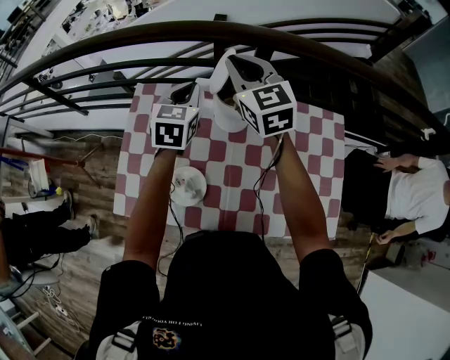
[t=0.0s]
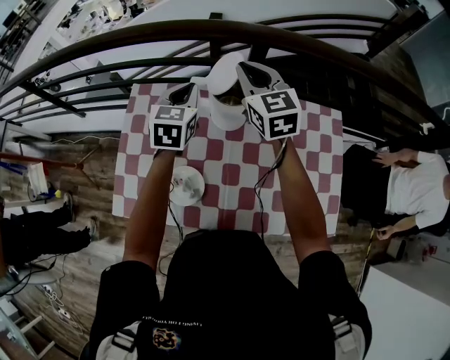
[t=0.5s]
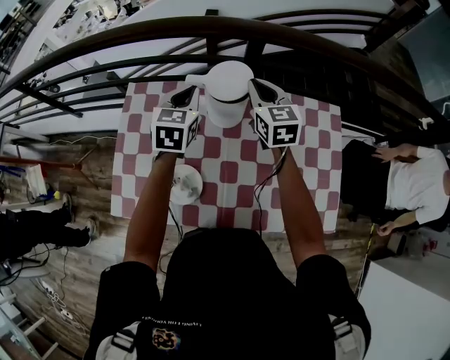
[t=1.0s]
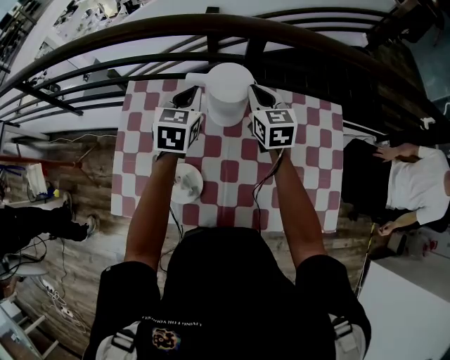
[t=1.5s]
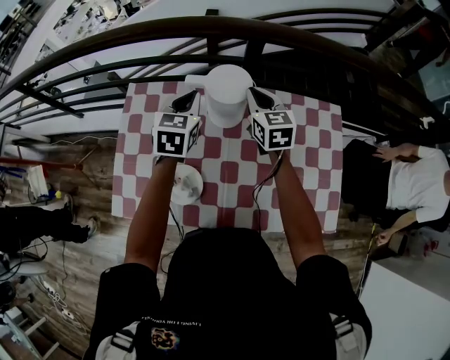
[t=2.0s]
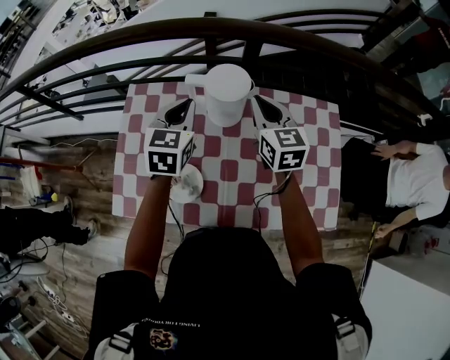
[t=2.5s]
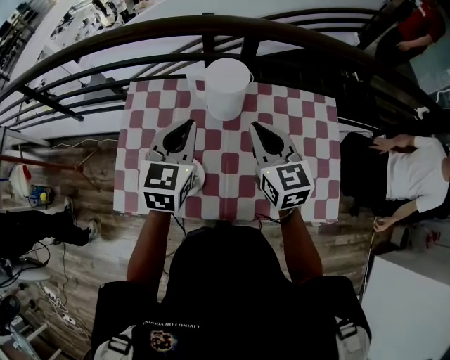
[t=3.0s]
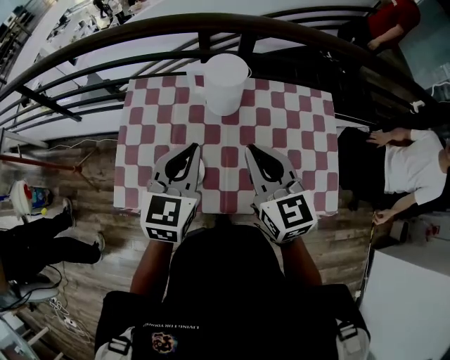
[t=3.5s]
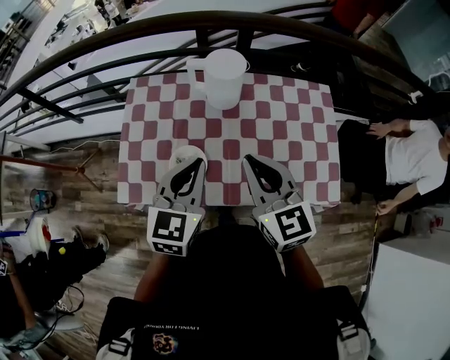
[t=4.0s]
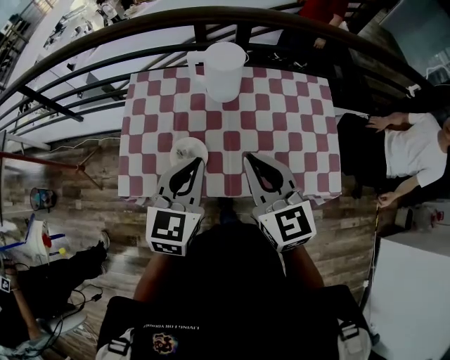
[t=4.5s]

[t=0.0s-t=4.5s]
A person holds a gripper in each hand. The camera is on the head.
t=0.0s to t=2.0s: The right gripper heads downward and to the right, covering approximately 15 cm, and rotates some 20 degrees.
t=2.0s to t=4.5s: Both grippers travel together backward, some 35 cm.

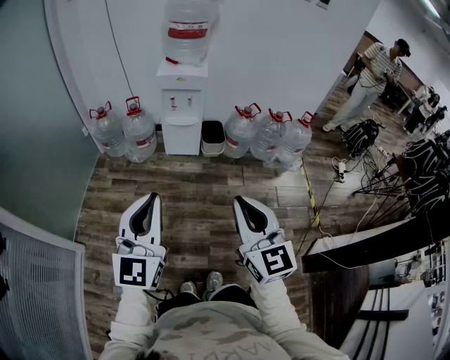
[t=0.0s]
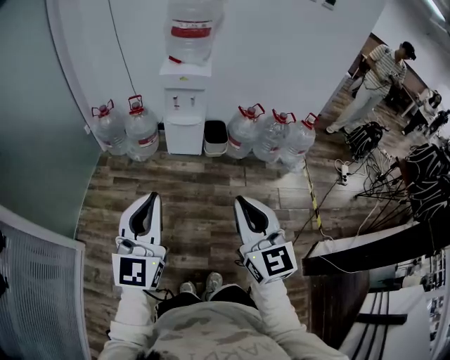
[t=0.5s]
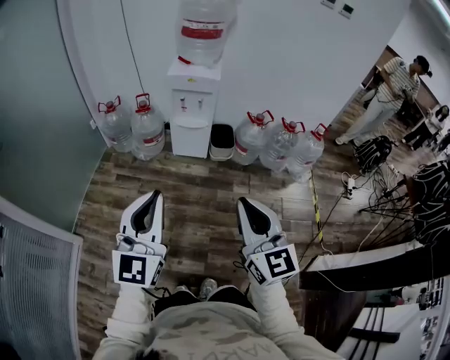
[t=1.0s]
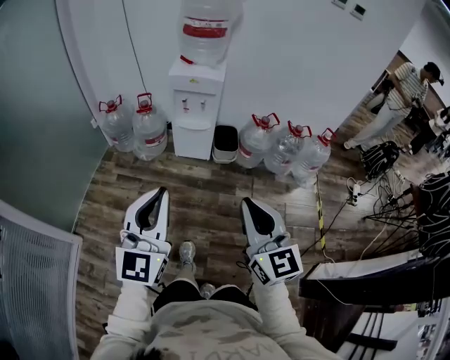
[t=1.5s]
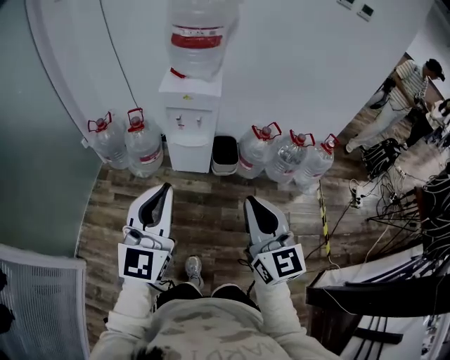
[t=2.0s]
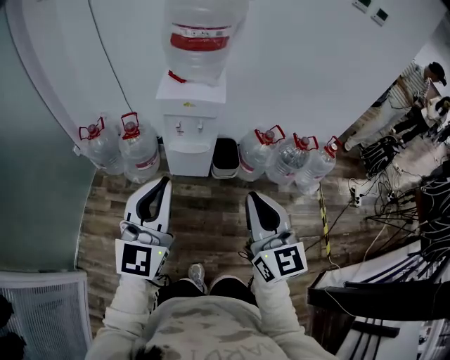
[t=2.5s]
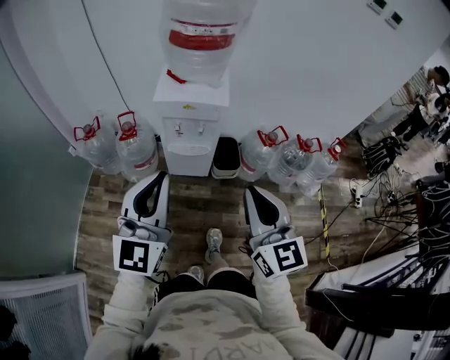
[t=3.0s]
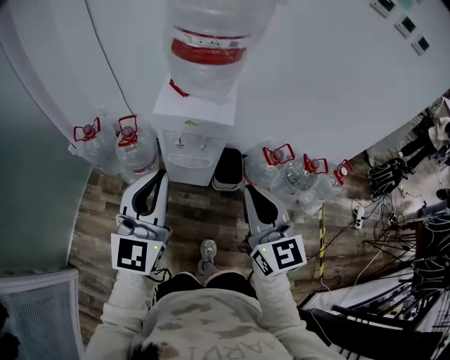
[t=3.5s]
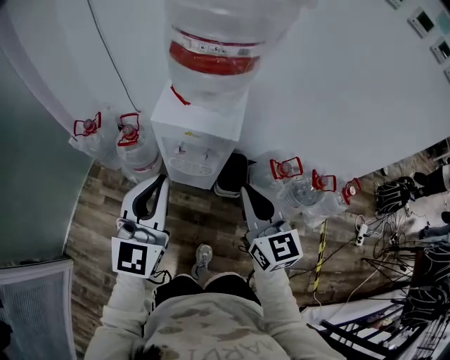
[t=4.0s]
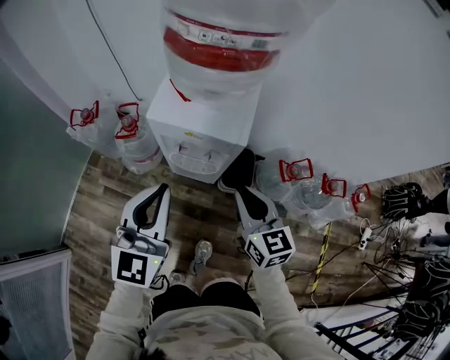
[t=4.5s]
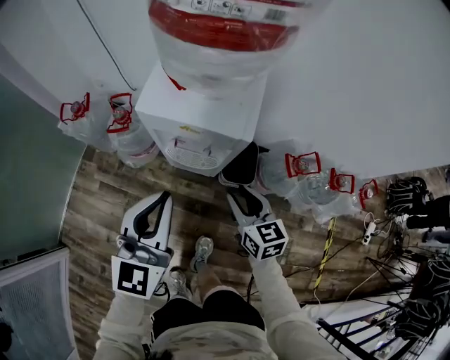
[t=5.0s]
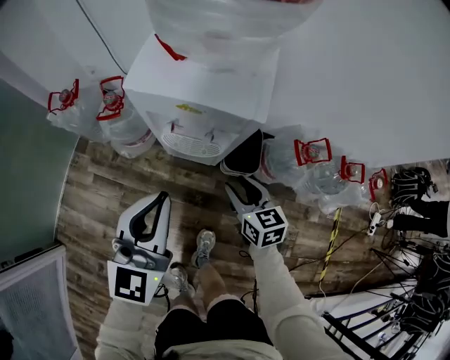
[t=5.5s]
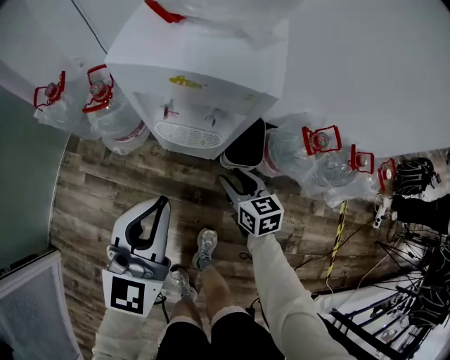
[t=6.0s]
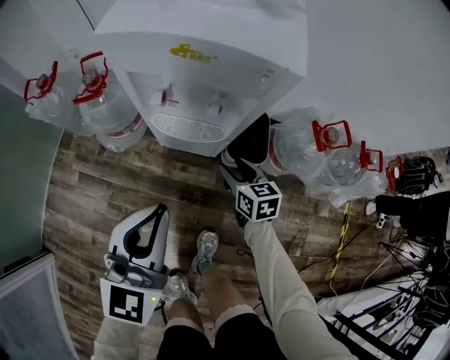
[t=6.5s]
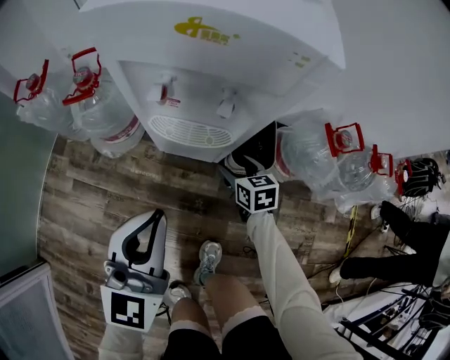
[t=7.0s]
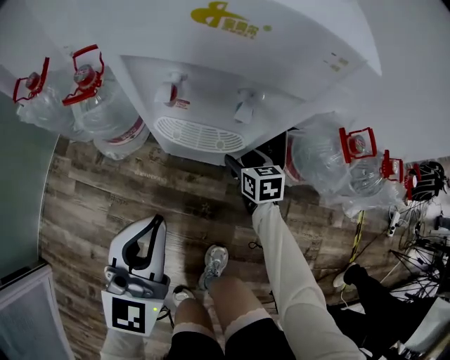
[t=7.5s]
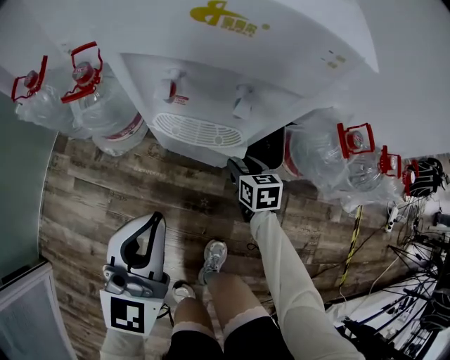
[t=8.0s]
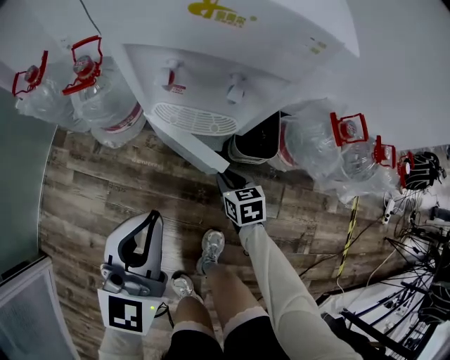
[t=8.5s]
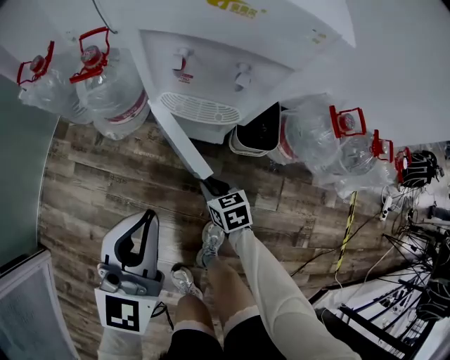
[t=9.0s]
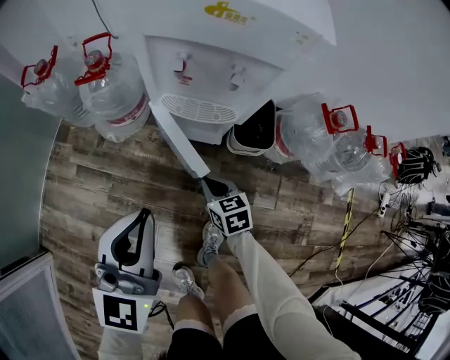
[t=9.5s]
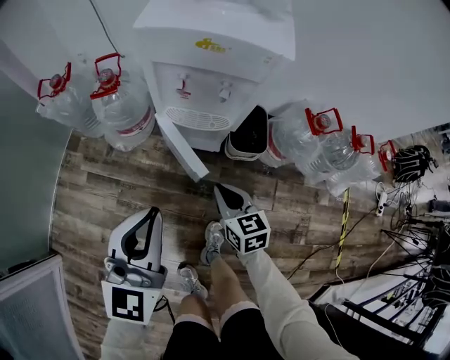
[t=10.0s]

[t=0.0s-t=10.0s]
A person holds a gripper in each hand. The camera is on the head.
t=0.0s to t=2.0s: Both grippers move forward, roughly 25 cm.
t=2.0s to t=4.0s: The grippers both shift forward by about 40 cm.
t=4.0s to t=6.0s: The left gripper is displaced downward by approximately 25 cm. The right gripper travels downward by roughly 40 cm, rotates roughly 30 degrees, and opens its fingers.
t=6.0s to t=8.0s: Both grippers travel together downward, roughly 20 cm. The right gripper opens and closes again.
t=8.0s to t=10.0s: The right gripper heads upward, backward and to the left, covering roughly 30 cm, and closes its fingers. Meanwhile the left gripper heads upward and backward, covering about 15 cm.

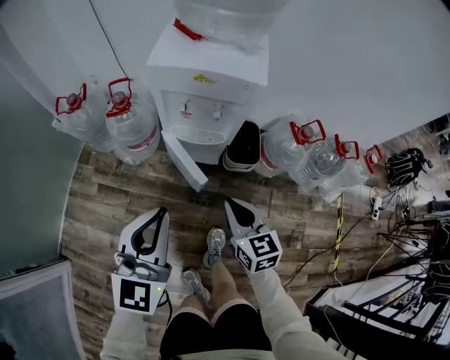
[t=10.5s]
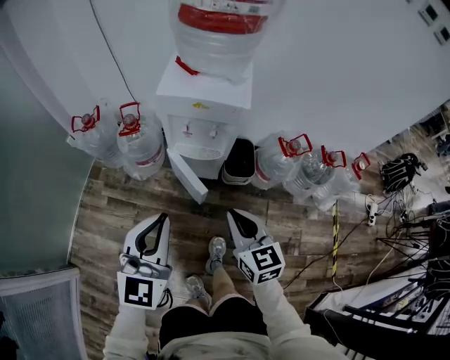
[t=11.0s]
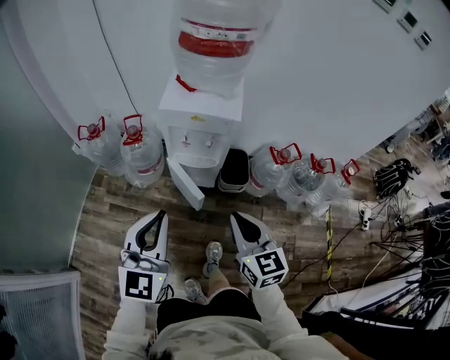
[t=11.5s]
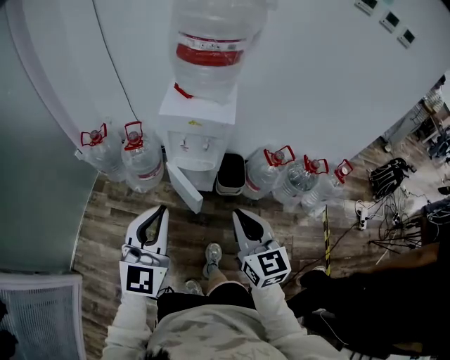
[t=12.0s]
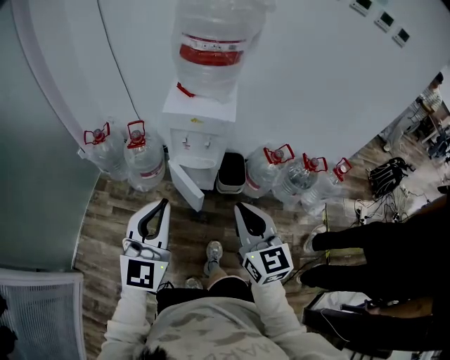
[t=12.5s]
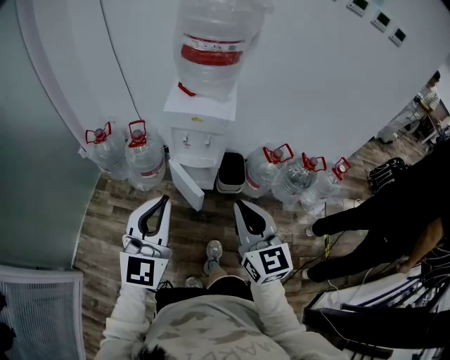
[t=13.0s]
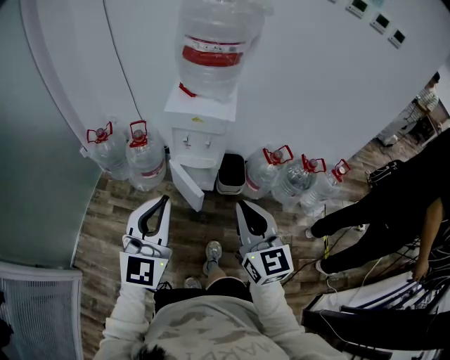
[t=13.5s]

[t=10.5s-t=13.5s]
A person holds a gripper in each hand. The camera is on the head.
t=10.5s to t=12.0s: The grippers both shift upward and backward by roughly 25 cm.
t=12.0s to t=13.5s: The left gripper moves roughly 5 cm. Meanwhile the right gripper is displaced upward by roughly 5 cm.

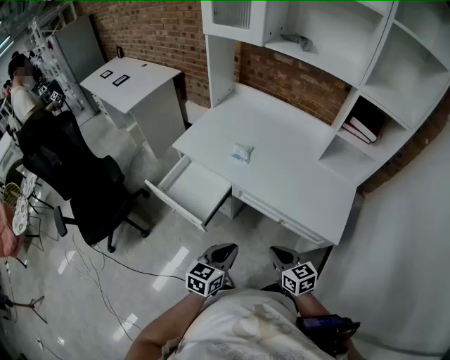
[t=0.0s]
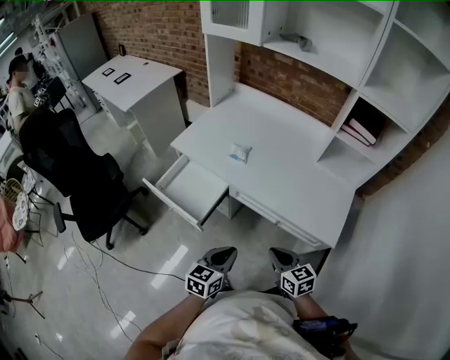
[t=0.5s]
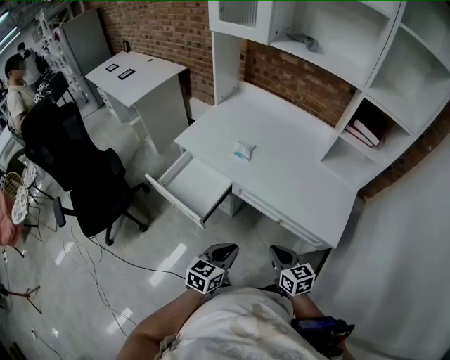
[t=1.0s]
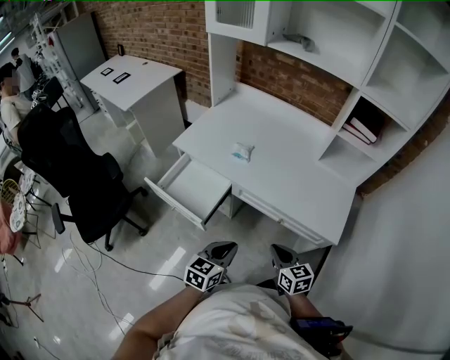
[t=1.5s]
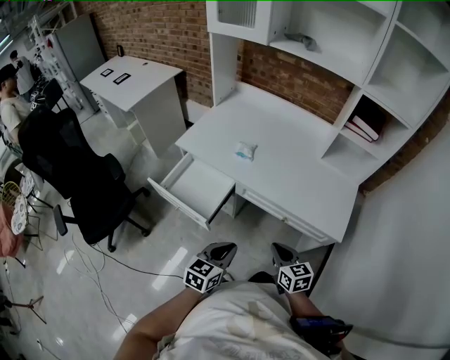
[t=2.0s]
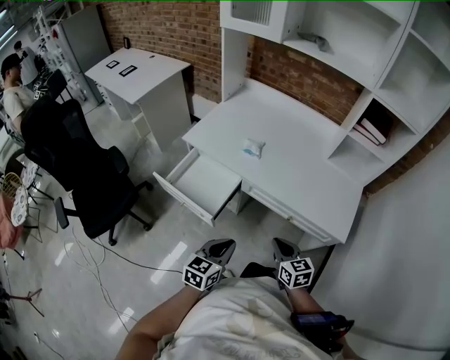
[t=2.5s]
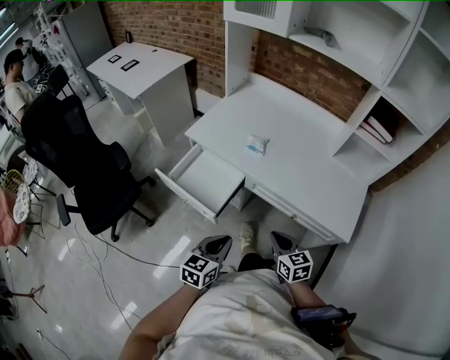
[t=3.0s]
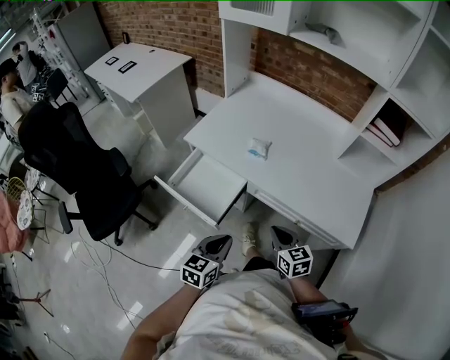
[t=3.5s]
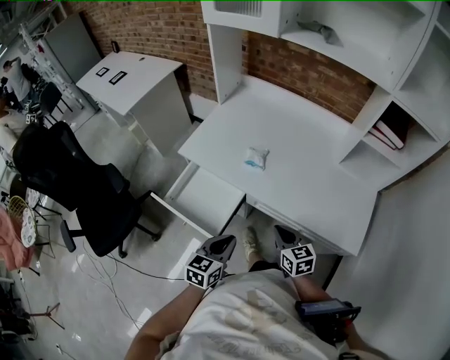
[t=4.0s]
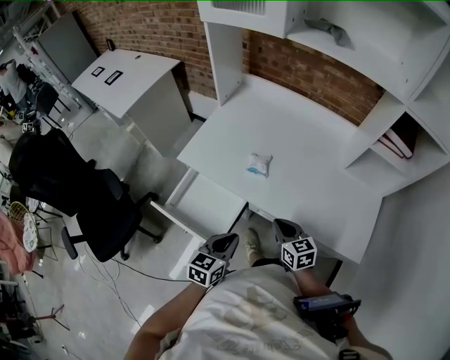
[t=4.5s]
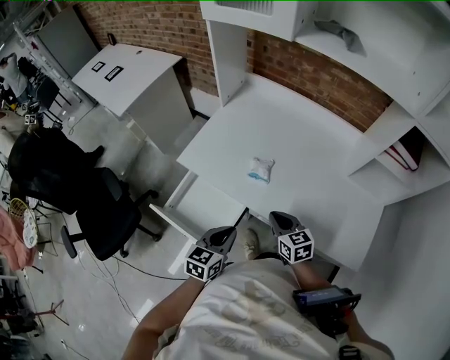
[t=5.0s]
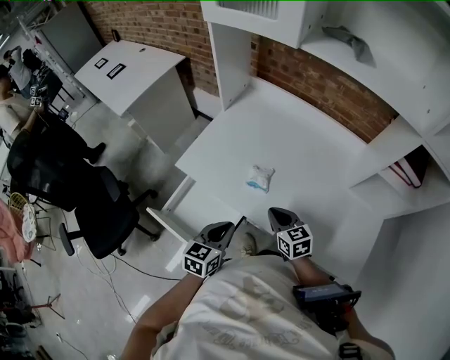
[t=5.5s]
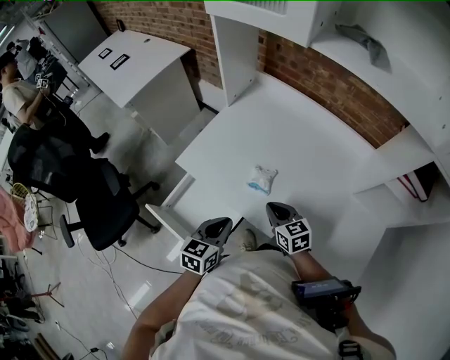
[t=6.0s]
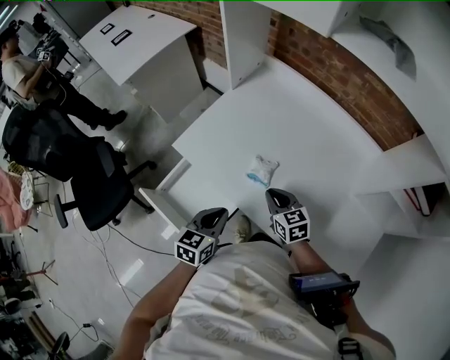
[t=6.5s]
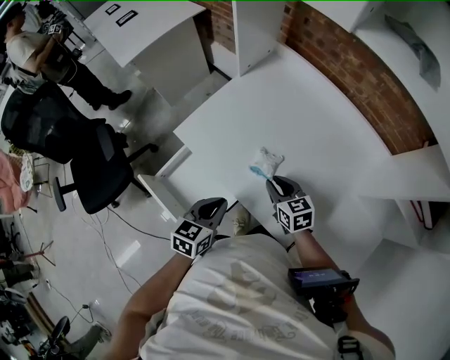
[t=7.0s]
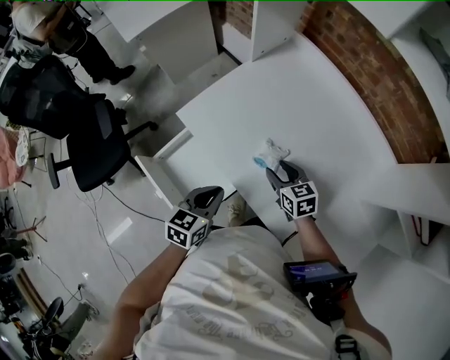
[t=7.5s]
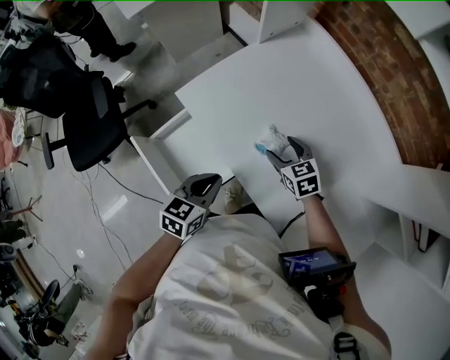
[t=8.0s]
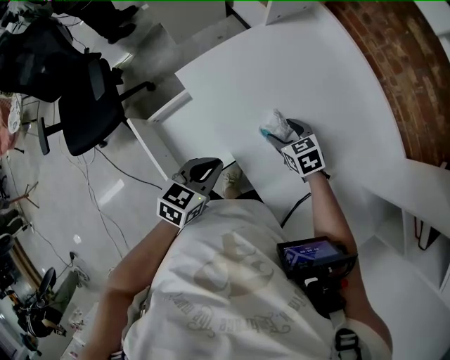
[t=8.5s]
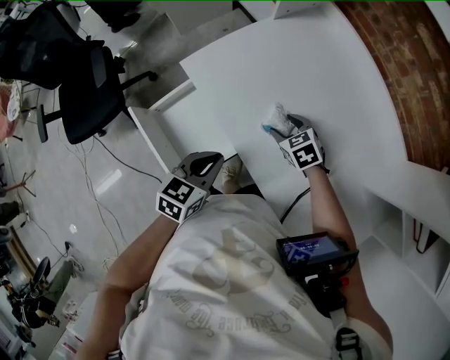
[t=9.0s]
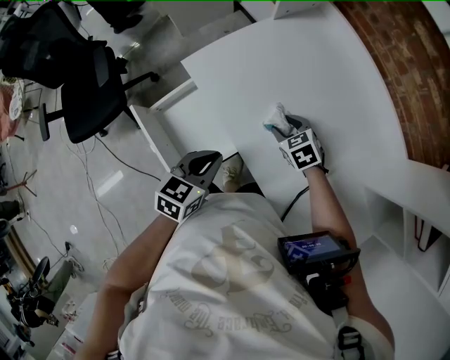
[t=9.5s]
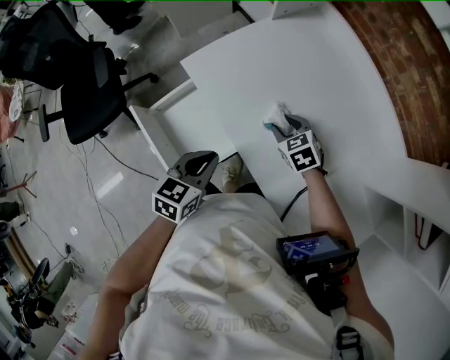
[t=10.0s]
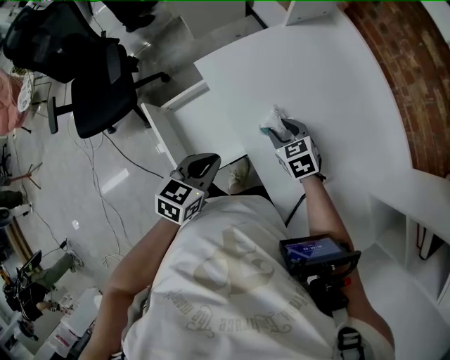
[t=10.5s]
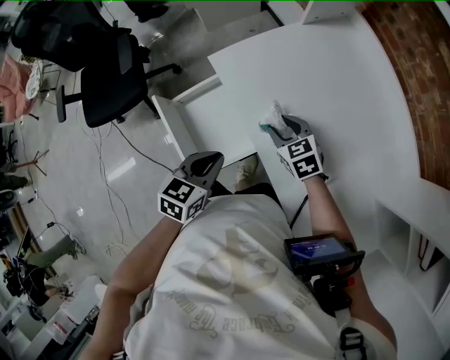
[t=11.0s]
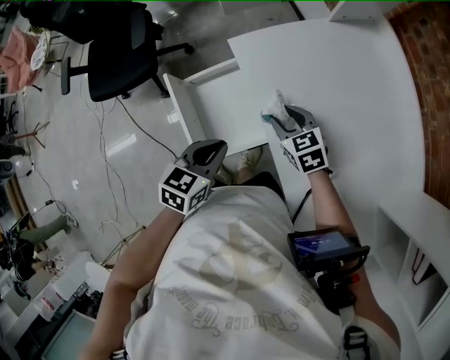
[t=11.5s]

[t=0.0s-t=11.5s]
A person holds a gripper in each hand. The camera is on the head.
t=0.0s to t=2.0s: The grippers move only a little.
t=2.0s to t=4.0s: The right gripper shifts about 15 cm forward, while the left gripper shifts about 15 cm forward and to the left.
t=4.0s to t=6.0s: The two grippers go approximately 20 cm forward.
t=6.0s to t=7.5s: The right gripper moves forward and downward, some 10 cm, and opens its fingers.
t=7.5s to t=9.5s: The right gripper moves downward, about 5 cm, and rotates about 30 degrees.
t=9.5s to t=11.5s: The right gripper heads to the left, covering some 15 cm; the left gripper moves to the left, about 5 cm.
